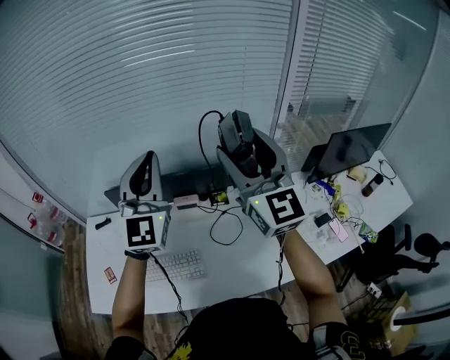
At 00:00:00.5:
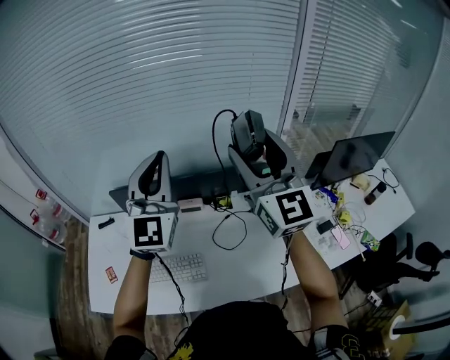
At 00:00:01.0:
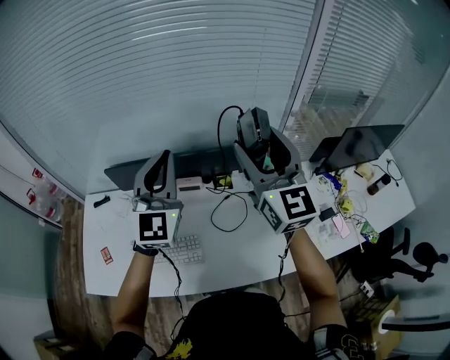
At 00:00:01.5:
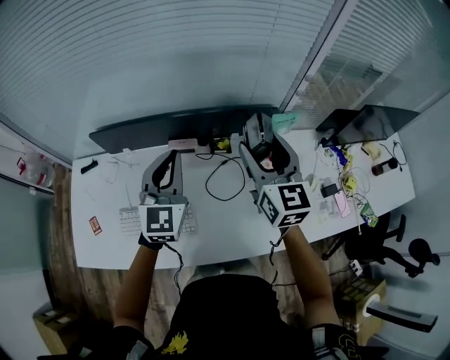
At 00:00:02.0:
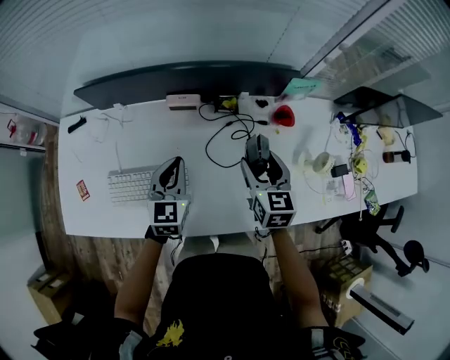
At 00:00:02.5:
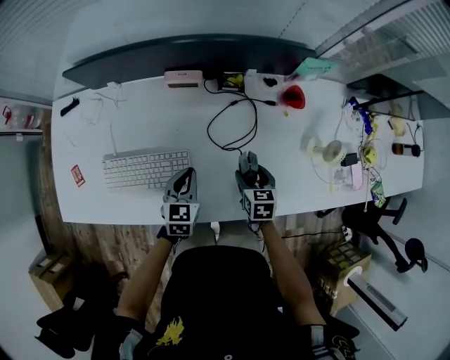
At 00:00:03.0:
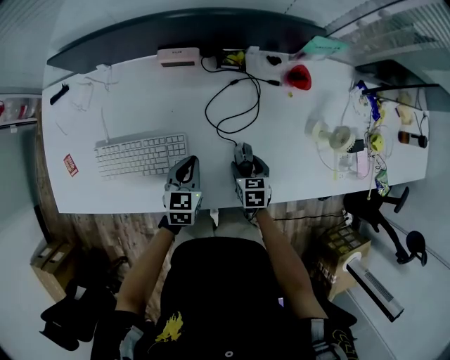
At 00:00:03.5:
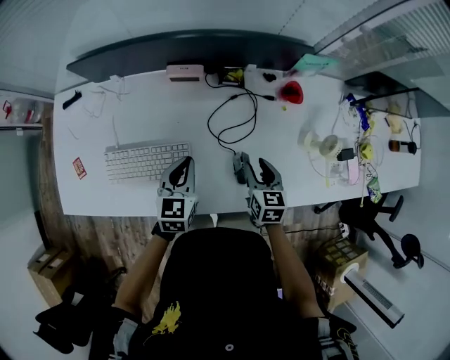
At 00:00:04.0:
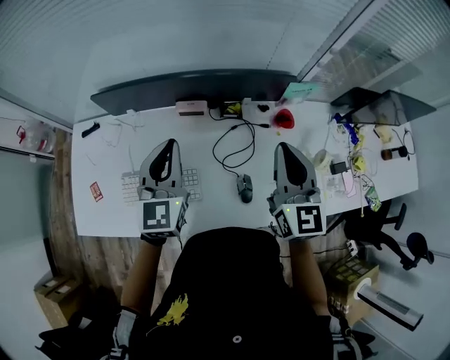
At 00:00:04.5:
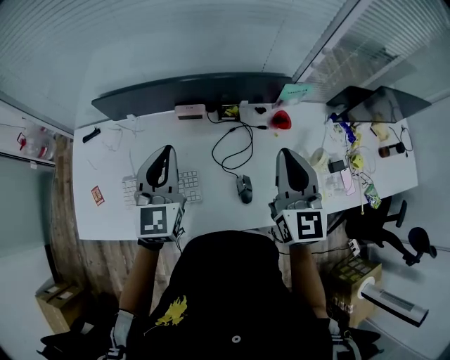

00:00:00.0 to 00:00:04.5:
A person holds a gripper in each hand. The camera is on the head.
00:00:00.0 to 00:00:02.0: Both grippers move downward, roughly 40 cm. The left gripper angles its fingers downward, by roughly 40 degrees, while the right gripper angles its fingers downward, by about 50 degrees.
00:00:02.0 to 00:00:04.5: Both grippers move upward, approximately 20 cm. The right gripper turns by approximately 30 degrees, and closes its fingers.

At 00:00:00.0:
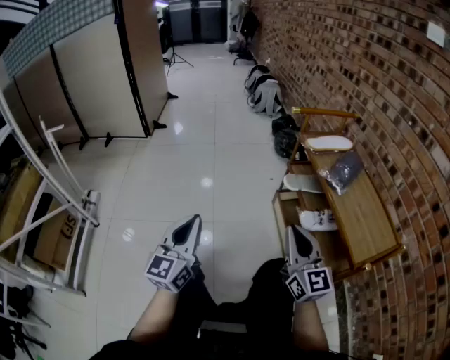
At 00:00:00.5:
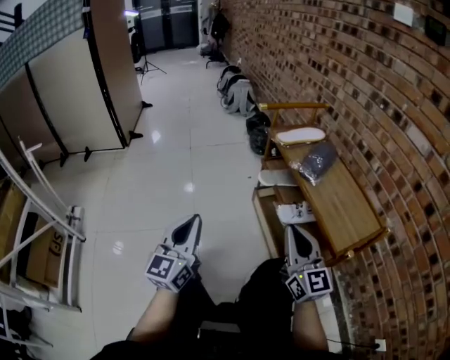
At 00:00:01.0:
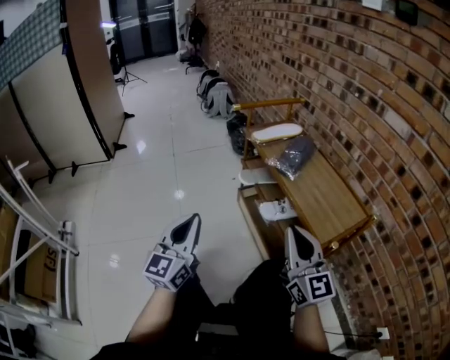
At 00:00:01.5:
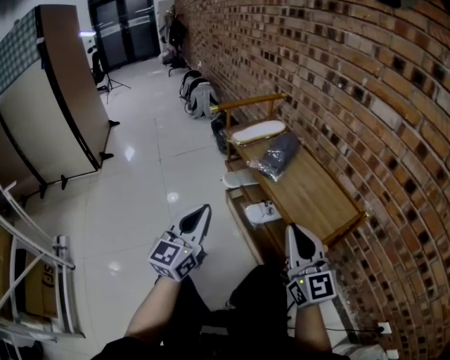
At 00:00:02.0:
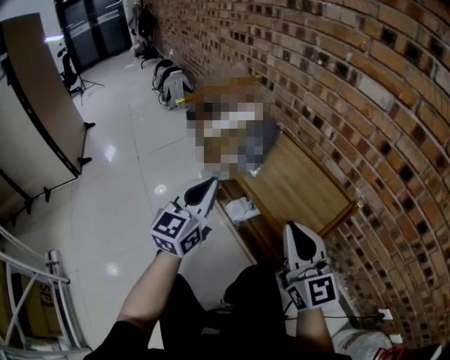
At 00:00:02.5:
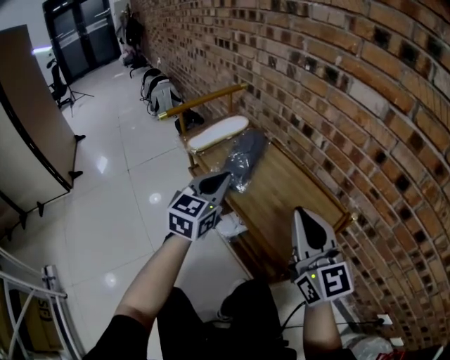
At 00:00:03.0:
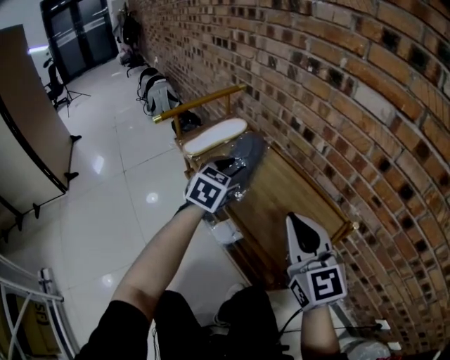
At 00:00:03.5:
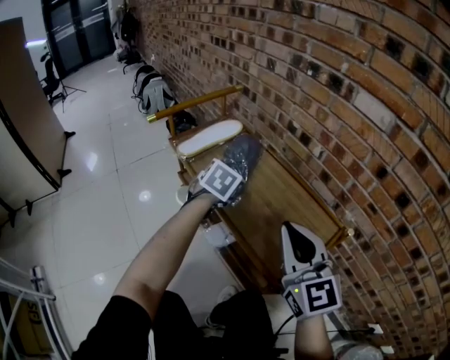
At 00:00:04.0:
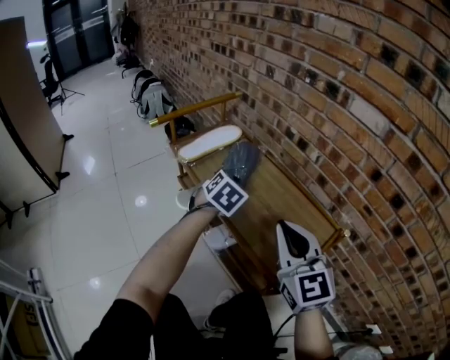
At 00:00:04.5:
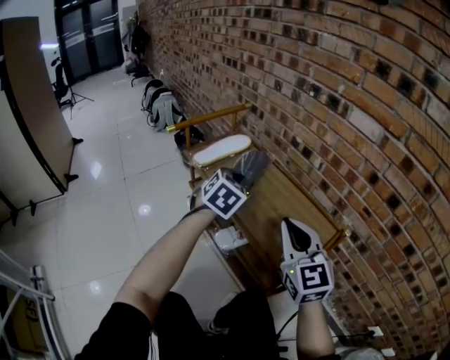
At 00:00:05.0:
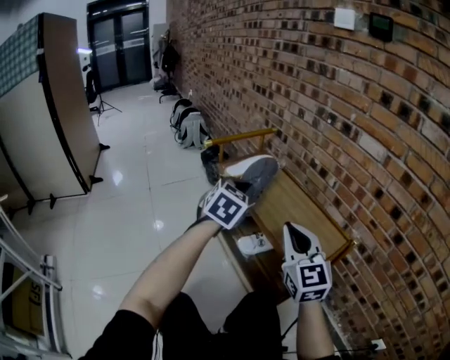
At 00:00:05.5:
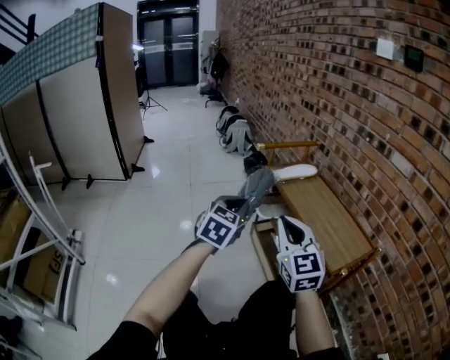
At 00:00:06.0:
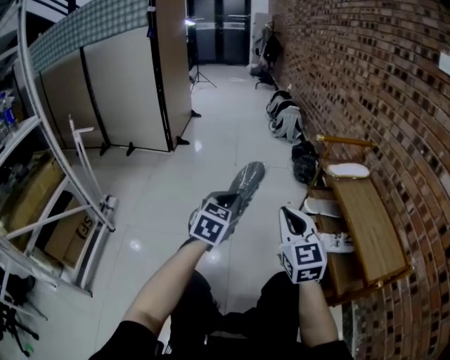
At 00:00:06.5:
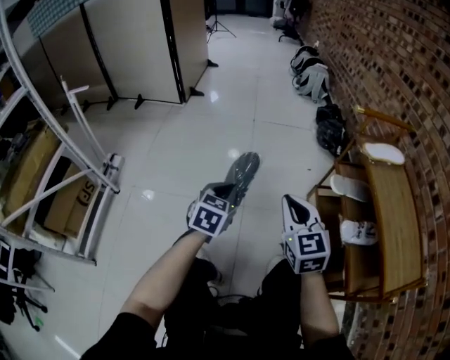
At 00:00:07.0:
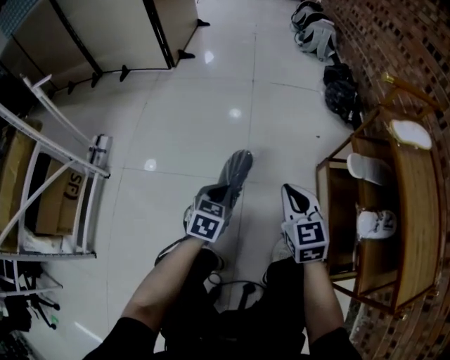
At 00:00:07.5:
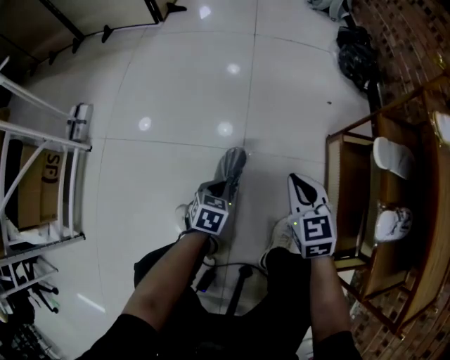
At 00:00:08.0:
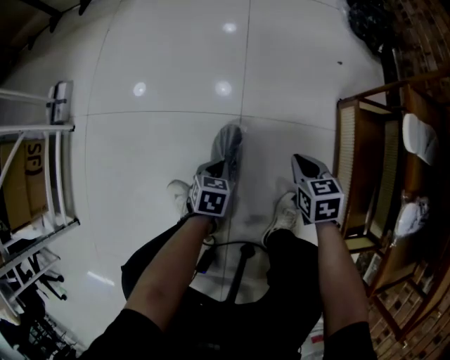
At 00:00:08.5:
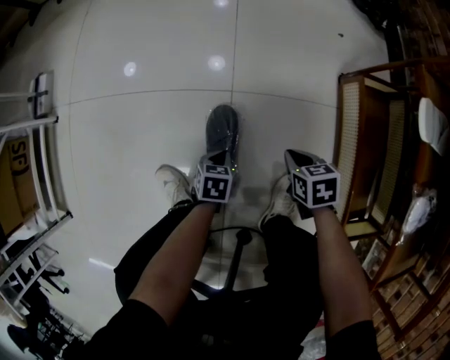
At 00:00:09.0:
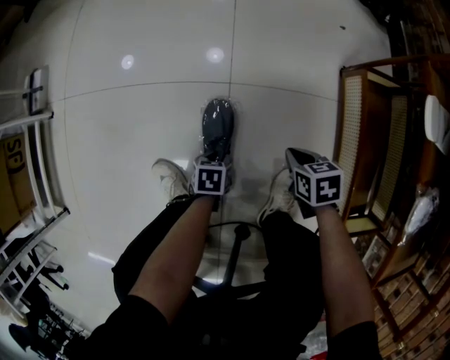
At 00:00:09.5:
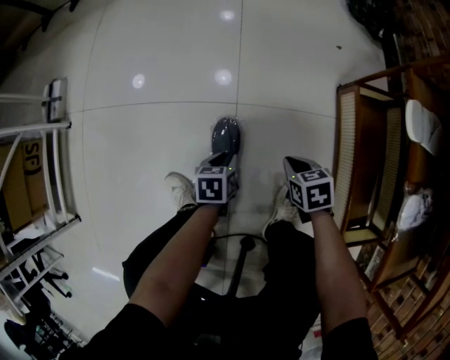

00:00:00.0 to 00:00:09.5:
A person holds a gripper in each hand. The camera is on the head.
00:00:00.0 to 00:00:02.0: The left gripper changes place by approximately 35 cm, and turns by some 30 degrees. Meanwhile the right gripper shifts by approximately 20 cm, and swivels roughly 20 degrees.
00:00:02.0 to 00:00:04.0: The right gripper moves forward, approximately 10 cm. The left gripper goes some 25 cm forward, downward and to the right, tilts its fingers approximately 40 degrees downward, and opens, then closes again.
00:00:04.0 to 00:00:05.5: The left gripper goes some 35 cm backward, to the left and upward, and swivels some 30 degrees. Meanwhile the right gripper travels to the left and backward by some 25 cm.
00:00:05.5 to 00:00:07.5: The left gripper shifts approximately 60 cm downward and to the left, and points its fingers about 40 degrees further downward; the right gripper travels downward, forward and to the left by about 50 cm, and angles its fingers downward, by about 30 degrees.
00:00:07.5 to 00:00:09.5: The left gripper shifts roughly 10 cm downward, rotates some 20 degrees, and opens. The right gripper is displaced downward by roughly 20 cm, and tips its fingers downward by approximately 30 degrees.

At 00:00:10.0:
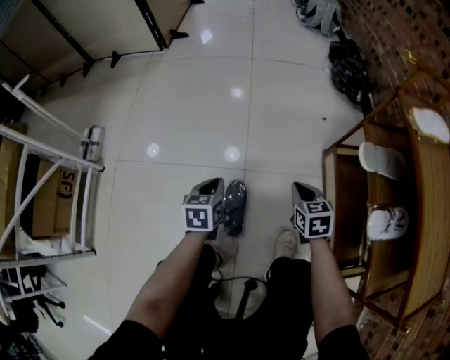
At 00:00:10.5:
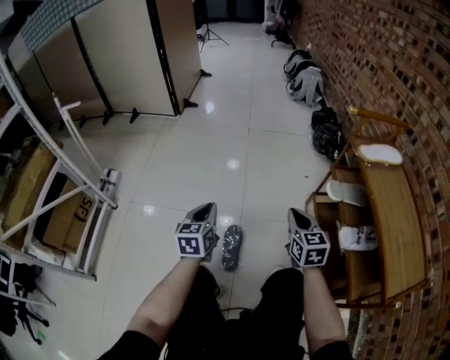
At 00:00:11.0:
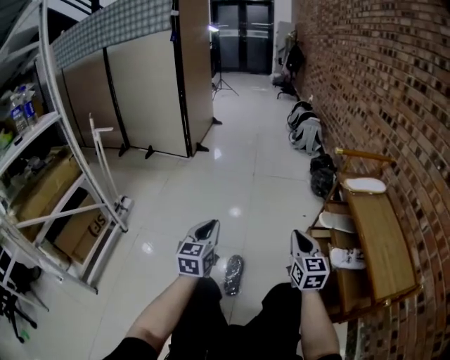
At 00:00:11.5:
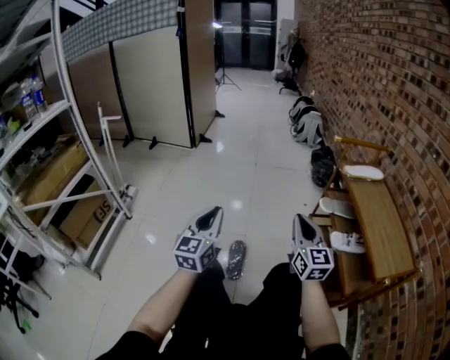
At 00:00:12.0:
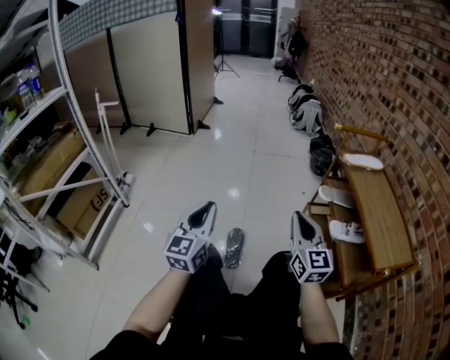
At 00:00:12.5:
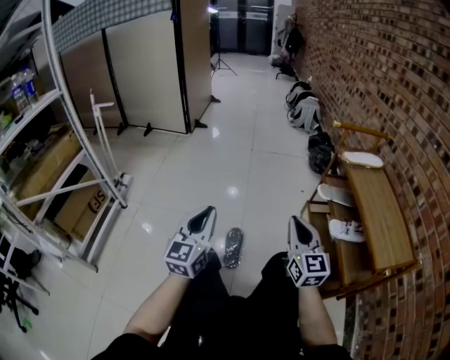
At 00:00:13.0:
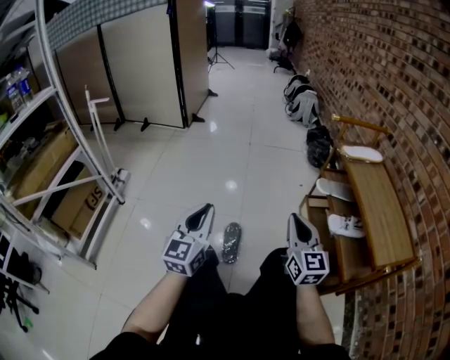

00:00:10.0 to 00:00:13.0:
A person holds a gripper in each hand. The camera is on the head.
00:00:10.0 to 00:00:11.5: Both grippers travel together upward and backward, some 40 cm. The left gripper tips its fingers upward by some 50 degrees. Meanwhile the right gripper points its fingers approximately 50 degrees further upward.
00:00:11.5 to 00:00:13.0: The right gripper shifts by some 5 cm.

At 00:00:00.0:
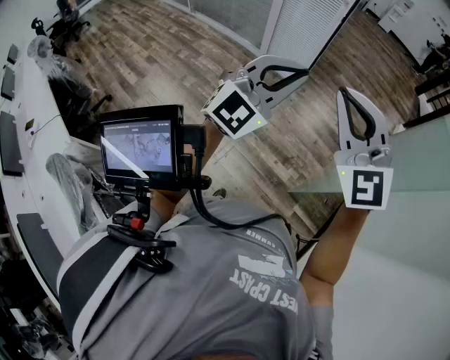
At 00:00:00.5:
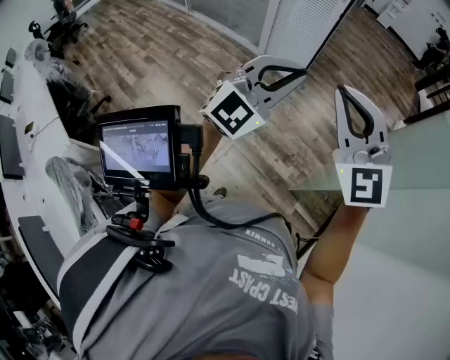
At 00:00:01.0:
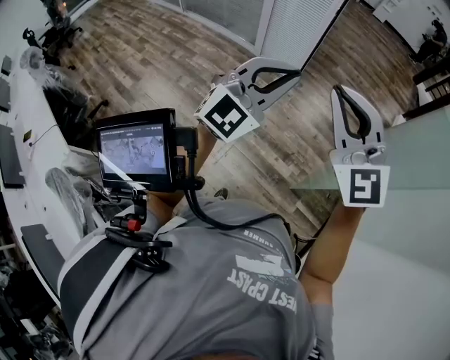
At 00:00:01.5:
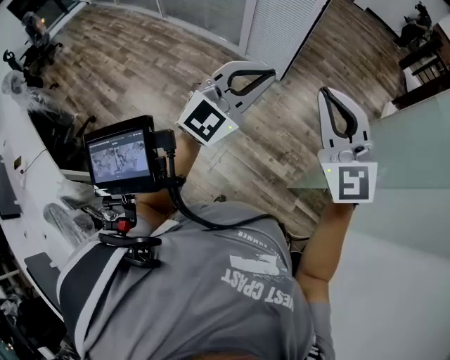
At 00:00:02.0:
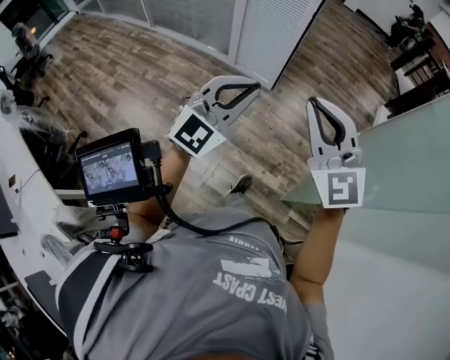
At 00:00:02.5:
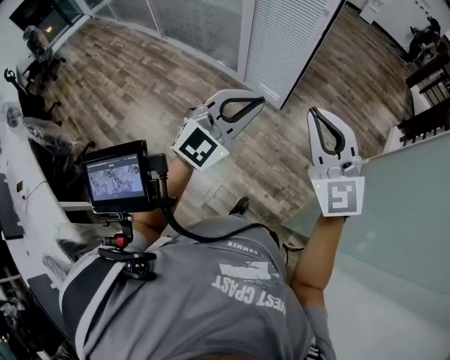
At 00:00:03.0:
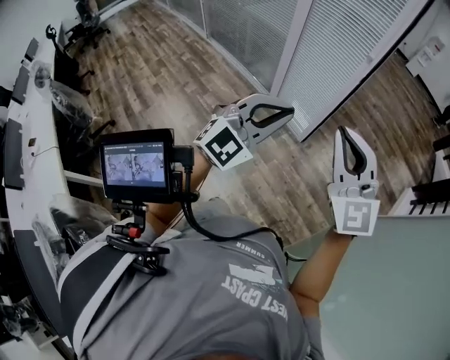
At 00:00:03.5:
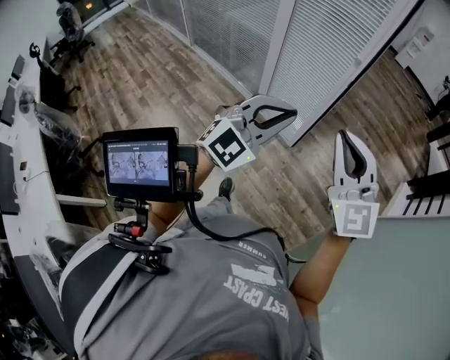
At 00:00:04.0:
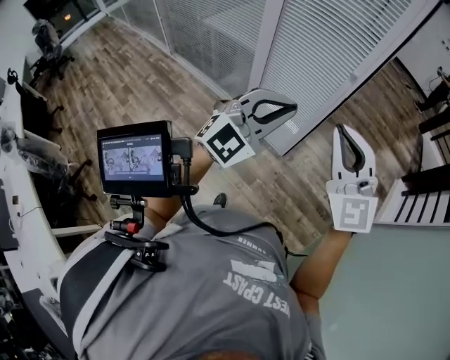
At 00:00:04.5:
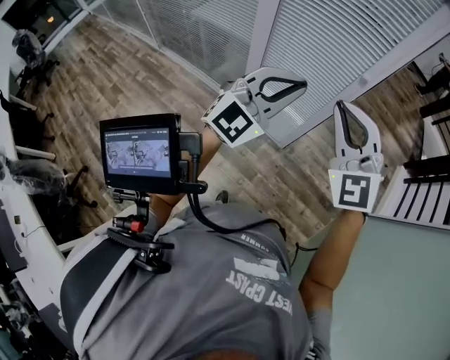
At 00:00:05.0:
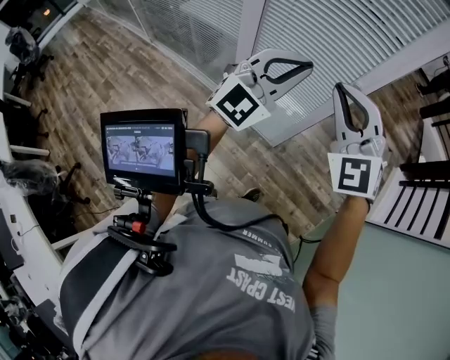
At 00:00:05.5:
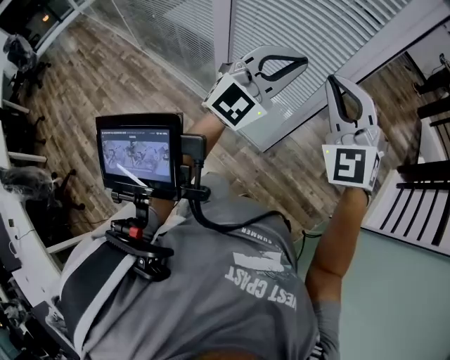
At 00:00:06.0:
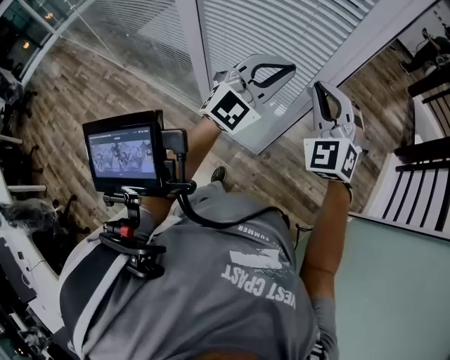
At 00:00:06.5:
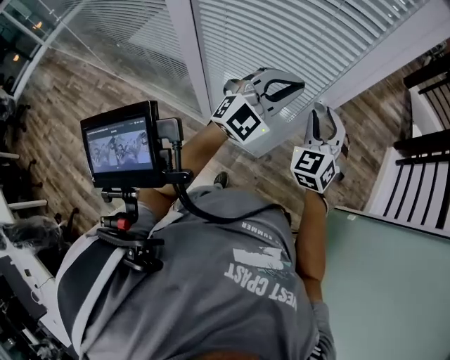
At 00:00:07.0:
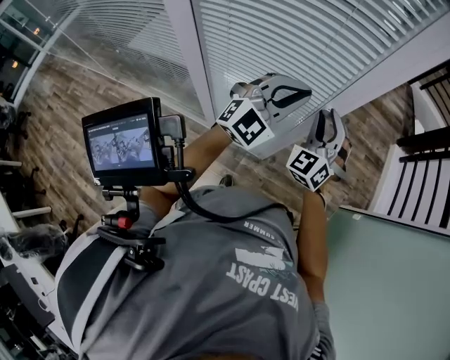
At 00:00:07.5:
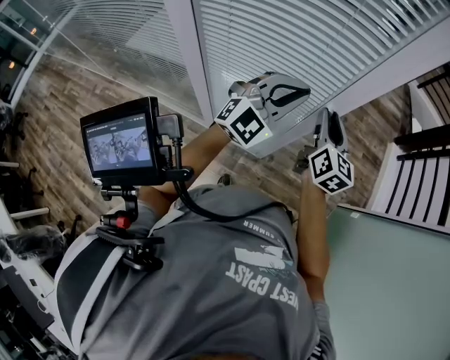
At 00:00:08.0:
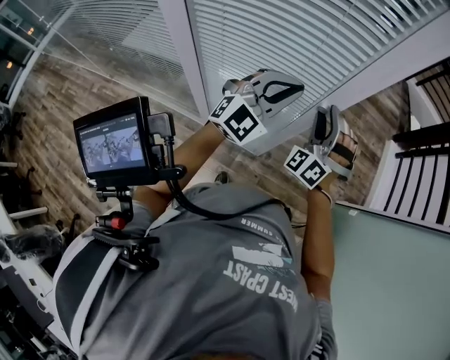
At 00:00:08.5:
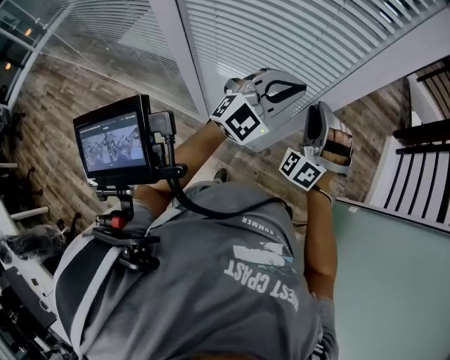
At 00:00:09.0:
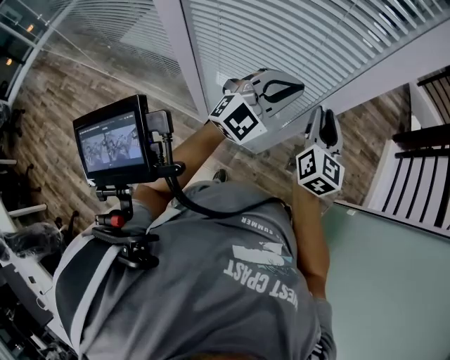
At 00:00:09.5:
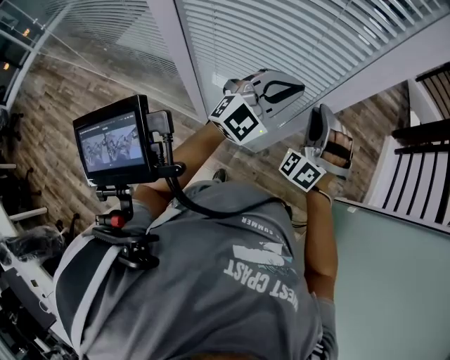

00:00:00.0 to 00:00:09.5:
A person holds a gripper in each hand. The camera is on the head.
00:00:00.0 to 00:00:02.0: The right gripper travels forward and downward by approximately 15 cm. Meanwhile the left gripper is displaced forward, to the left and downward by approximately 15 cm.
00:00:02.0 to 00:00:04.0: The pair of grippers is taken forward, approximately 50 cm.
00:00:04.0 to 00:00:05.5: The two grippers go approximately 35 cm forward. The right gripper changes its angle by about 20 degrees.
00:00:05.5 to 00:00:07.5: The right gripper ends up roughly 20 cm from where it was, rotates around the line of its fingers by about 70 degrees, clockwise from behind, and opens. Meanwhile the left gripper moves some 10 cm.
00:00:07.5 to 00:00:09.5: The right gripper twists approximately 100 degrees counterclockwise, seen from behind.
